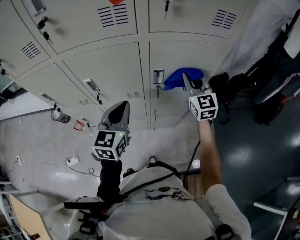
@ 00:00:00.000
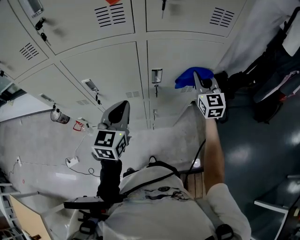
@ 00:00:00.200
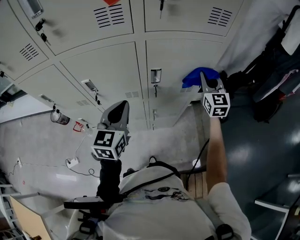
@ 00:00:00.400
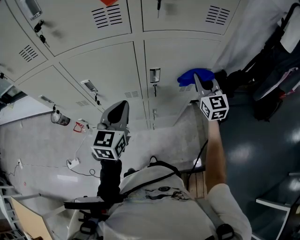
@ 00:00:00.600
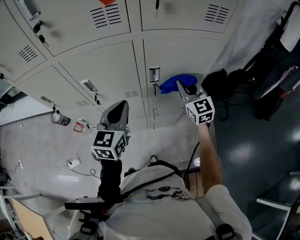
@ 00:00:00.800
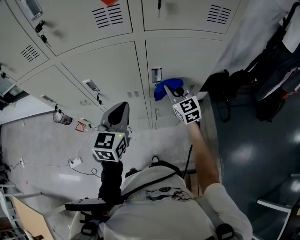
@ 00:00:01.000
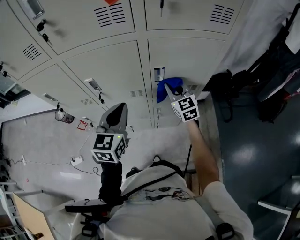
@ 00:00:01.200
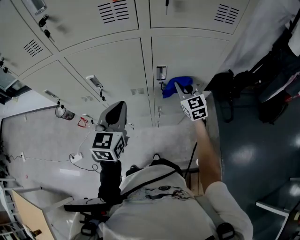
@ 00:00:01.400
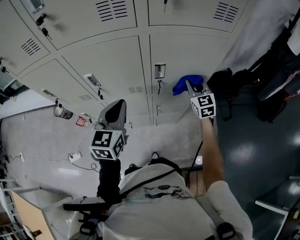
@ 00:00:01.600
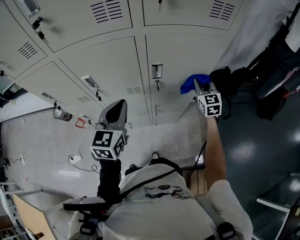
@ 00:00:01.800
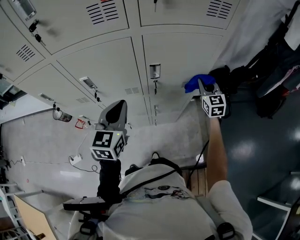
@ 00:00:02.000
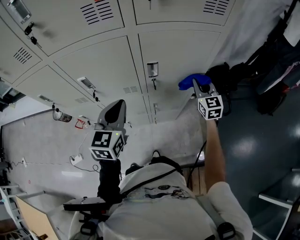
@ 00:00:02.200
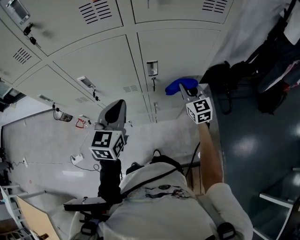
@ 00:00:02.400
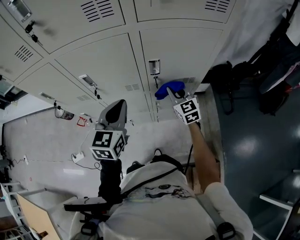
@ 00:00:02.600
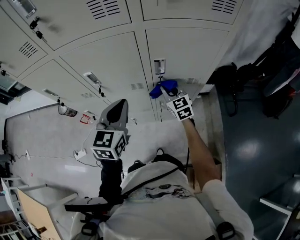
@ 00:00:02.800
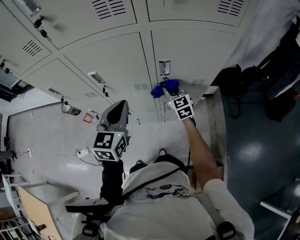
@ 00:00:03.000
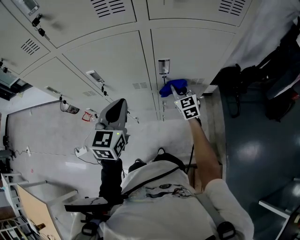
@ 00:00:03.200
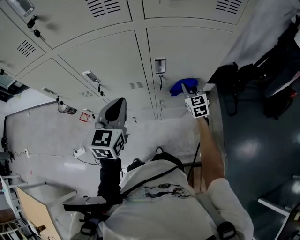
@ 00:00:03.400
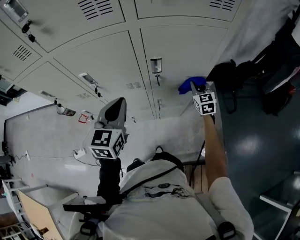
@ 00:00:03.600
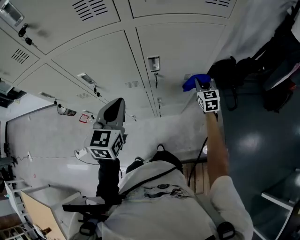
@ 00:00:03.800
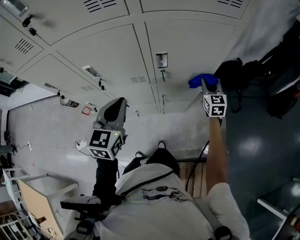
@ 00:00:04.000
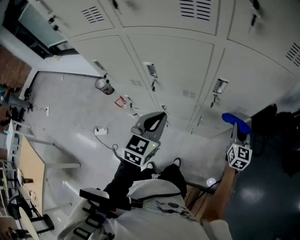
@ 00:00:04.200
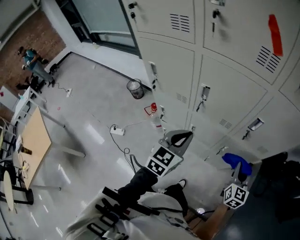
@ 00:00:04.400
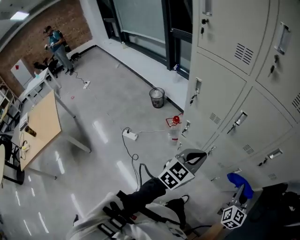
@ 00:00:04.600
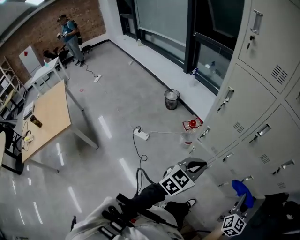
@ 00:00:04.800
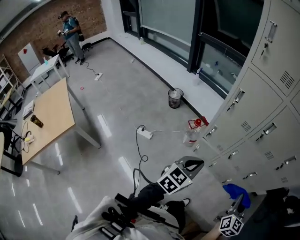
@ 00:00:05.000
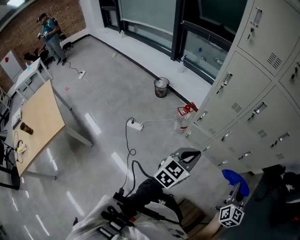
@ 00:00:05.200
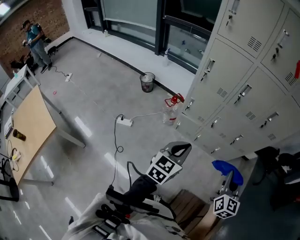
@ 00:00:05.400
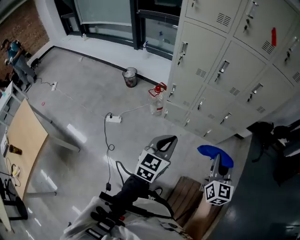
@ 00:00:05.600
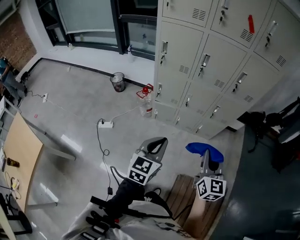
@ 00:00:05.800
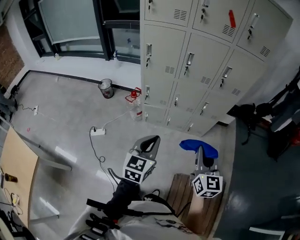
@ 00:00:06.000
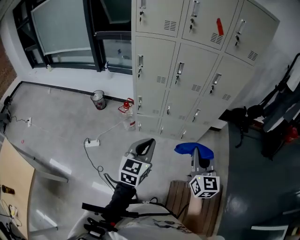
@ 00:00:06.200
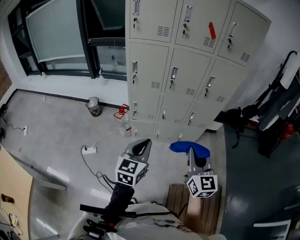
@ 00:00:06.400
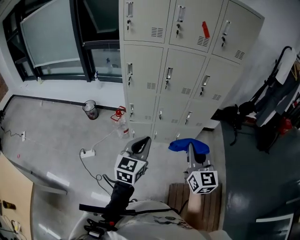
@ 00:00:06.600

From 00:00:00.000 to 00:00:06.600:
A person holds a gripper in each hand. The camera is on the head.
From 00:00:00.000 to 00:00:01.600: The right gripper moves left and right over about 15 cm, changing direction 2 times.
From 00:00:01.600 to 00:00:03.200: The right gripper goes left and right, about 20 cm each way, reversing 2 times.
From 00:00:03.200 to 00:00:05.000: Both grippers move backward, about 35 cm. The right gripper changes its angle by about 20 degrees.
From 00:00:05.000 to 00:00:06.600: The right gripper heads backward and upward, covering about 20 cm. The left gripper is displaced to the right, backward and upward by some 15 cm.

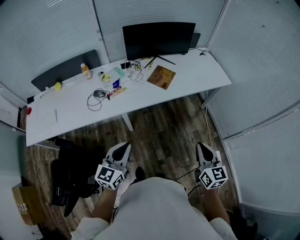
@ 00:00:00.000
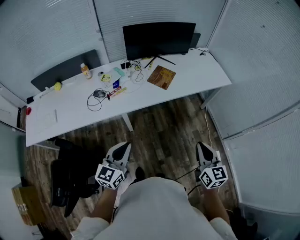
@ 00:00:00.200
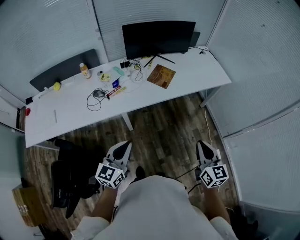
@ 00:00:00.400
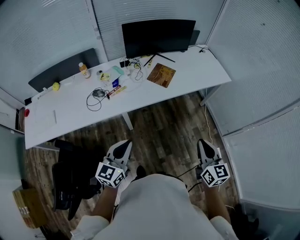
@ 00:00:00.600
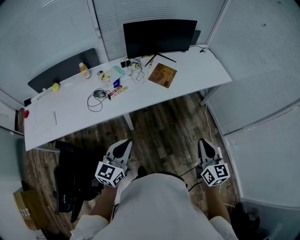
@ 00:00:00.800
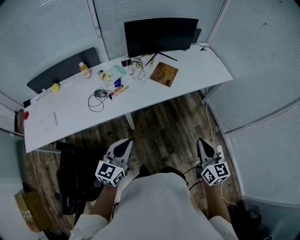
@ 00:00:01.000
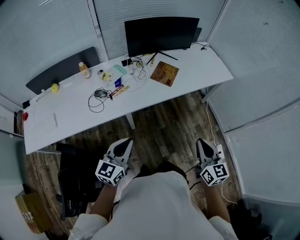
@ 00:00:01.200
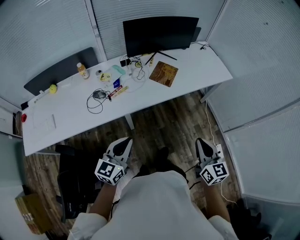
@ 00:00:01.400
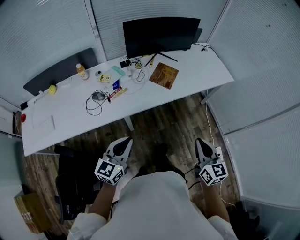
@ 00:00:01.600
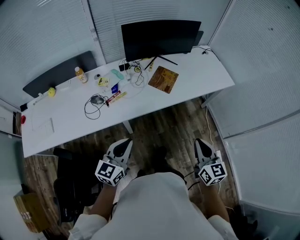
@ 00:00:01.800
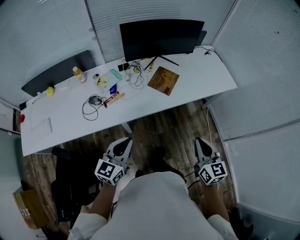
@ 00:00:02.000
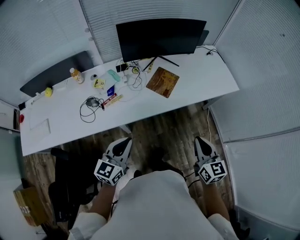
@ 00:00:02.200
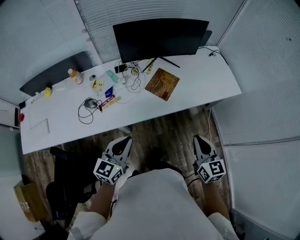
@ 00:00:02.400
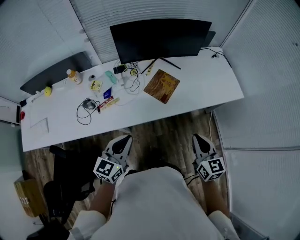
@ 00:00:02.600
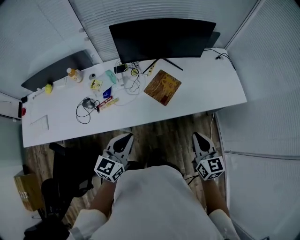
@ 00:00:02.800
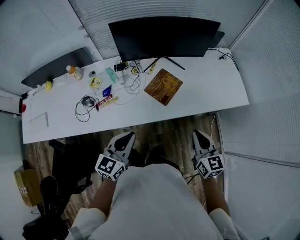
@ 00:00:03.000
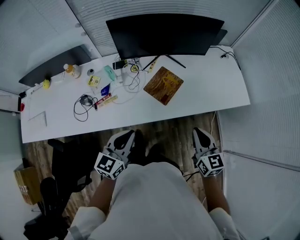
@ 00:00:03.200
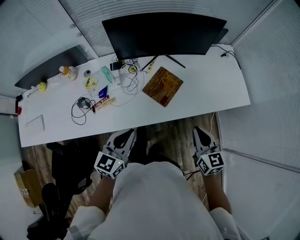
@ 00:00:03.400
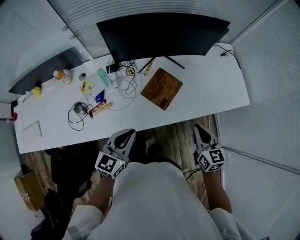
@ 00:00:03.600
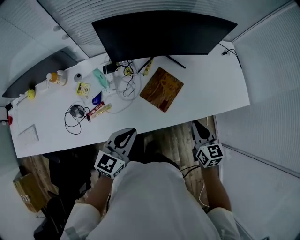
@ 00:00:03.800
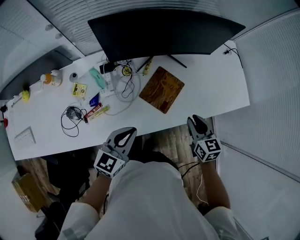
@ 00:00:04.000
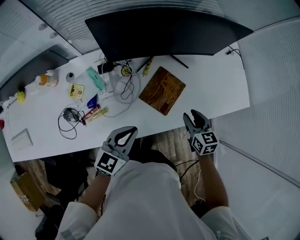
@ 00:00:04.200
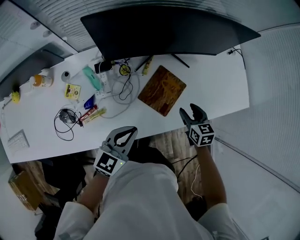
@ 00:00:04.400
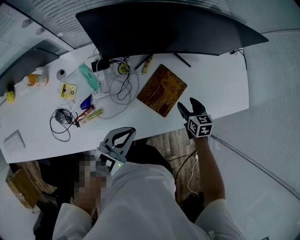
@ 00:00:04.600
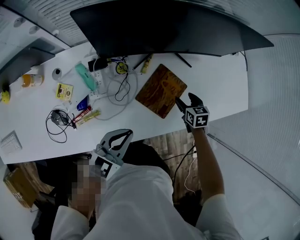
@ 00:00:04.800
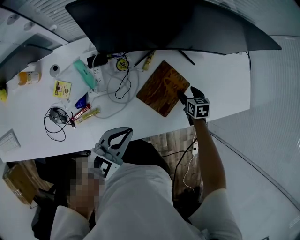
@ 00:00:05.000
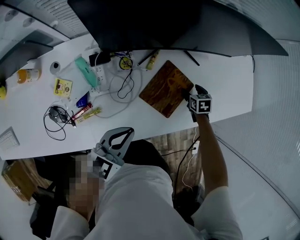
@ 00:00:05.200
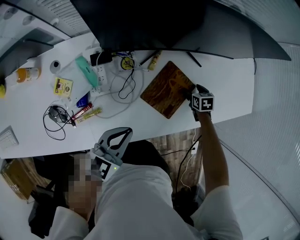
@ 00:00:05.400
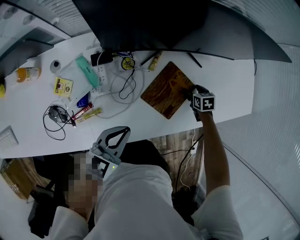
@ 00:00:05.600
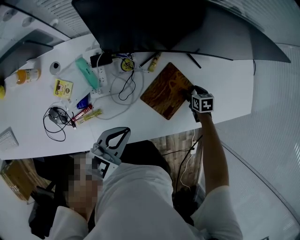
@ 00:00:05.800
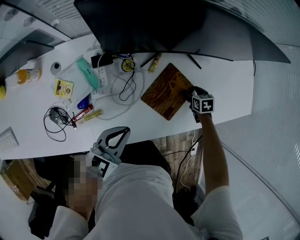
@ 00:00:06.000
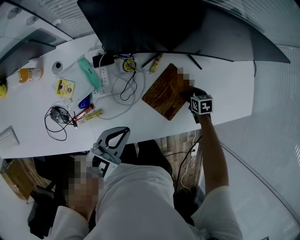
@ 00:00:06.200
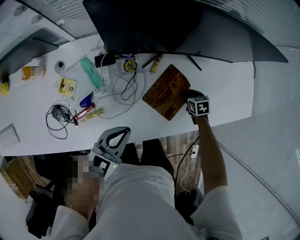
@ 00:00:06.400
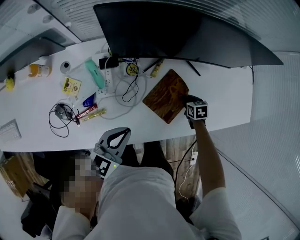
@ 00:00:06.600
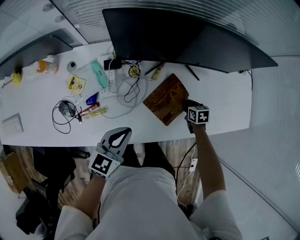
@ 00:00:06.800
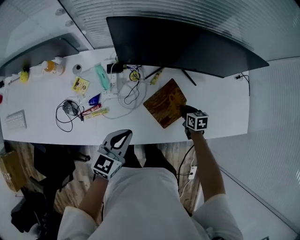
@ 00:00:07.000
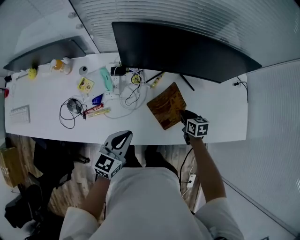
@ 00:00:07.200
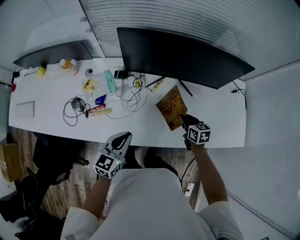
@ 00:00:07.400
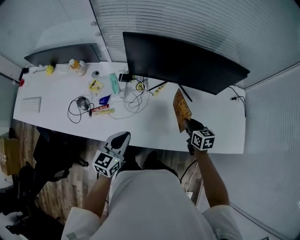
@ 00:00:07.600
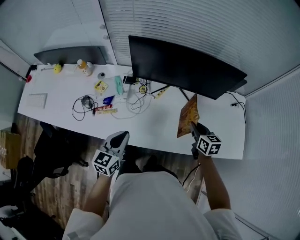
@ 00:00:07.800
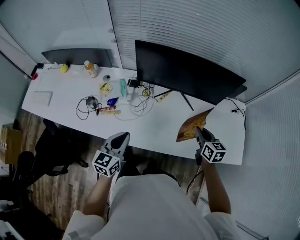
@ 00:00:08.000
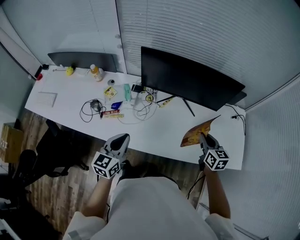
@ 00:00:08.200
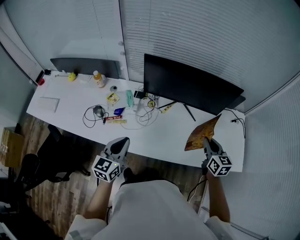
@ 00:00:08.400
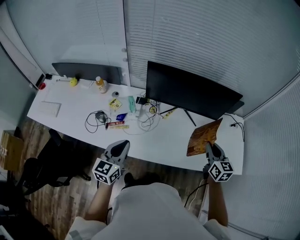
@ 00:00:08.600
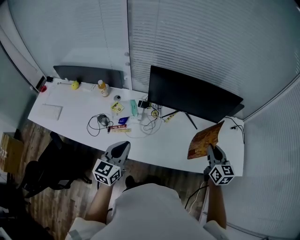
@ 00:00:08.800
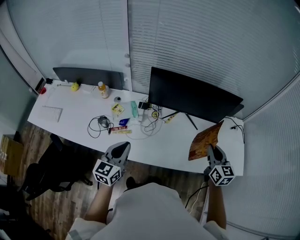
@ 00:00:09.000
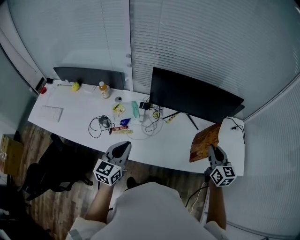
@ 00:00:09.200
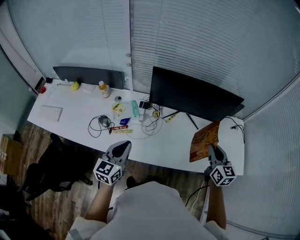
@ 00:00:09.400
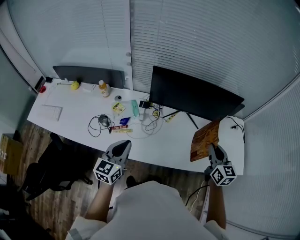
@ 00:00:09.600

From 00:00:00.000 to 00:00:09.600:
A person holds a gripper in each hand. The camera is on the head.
From 00:00:00.000 to 00:00:01.600: The right gripper heads to the left and forward, covering approximately 10 cm. Meanwhile the left gripper travels forward and to the left by roughly 10 cm.
From 00:00:01.600 to 00:00:03.200: The right gripper is displaced forward by about 30 cm; the left gripper heads forward and to the right, covering some 25 cm.
From 00:00:03.200 to 00:00:04.800: The left gripper is displaced forward and downward by roughly 20 cm. The right gripper is displaced downward and forward by approximately 40 cm, tips its fingers downward by roughly 40 degrees, and opens up.
From 00:00:04.800 to 00:00:06.400: The right gripper travels downward by some 10 cm, and closes.
From 00:00:06.400 to 00:00:08.000: The left gripper travels upward and backward by about 15 cm, and rotates some 30 degrees. Meanwhile the right gripper goes roughly 30 cm upward, and tilts its fingers roughly 40 degrees upward.
From 00:00:08.000 to 00:00:09.600: The left gripper goes roughly 10 cm to the left and upward; the right gripper is displaced upward by some 15 cm, and turns by about 20 degrees.

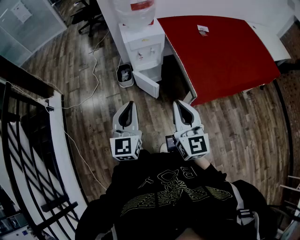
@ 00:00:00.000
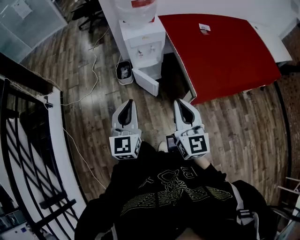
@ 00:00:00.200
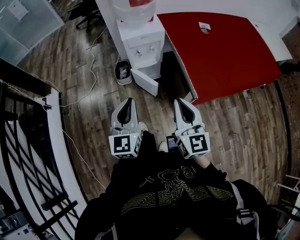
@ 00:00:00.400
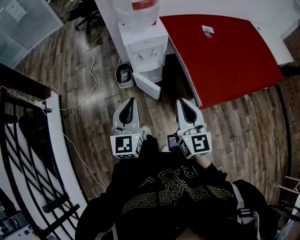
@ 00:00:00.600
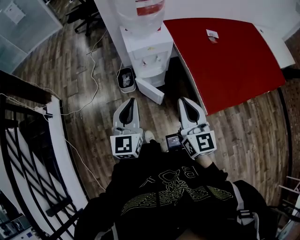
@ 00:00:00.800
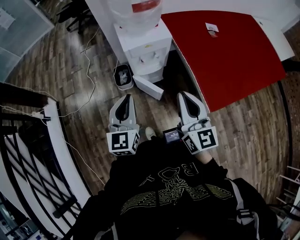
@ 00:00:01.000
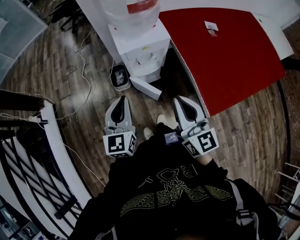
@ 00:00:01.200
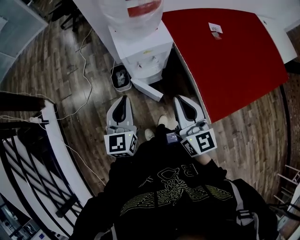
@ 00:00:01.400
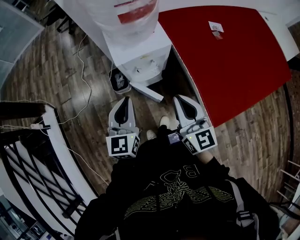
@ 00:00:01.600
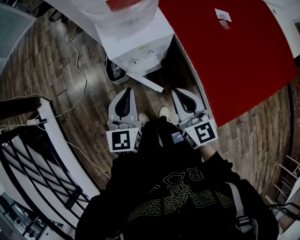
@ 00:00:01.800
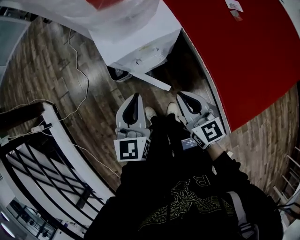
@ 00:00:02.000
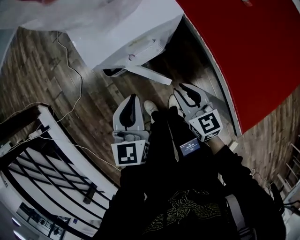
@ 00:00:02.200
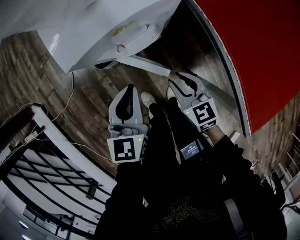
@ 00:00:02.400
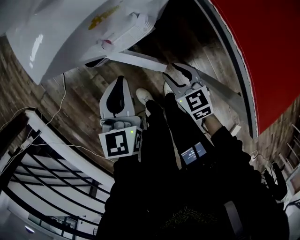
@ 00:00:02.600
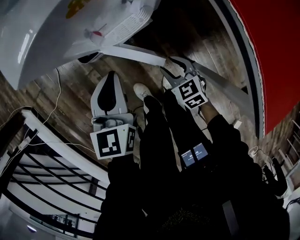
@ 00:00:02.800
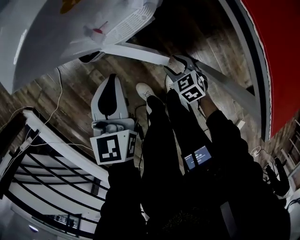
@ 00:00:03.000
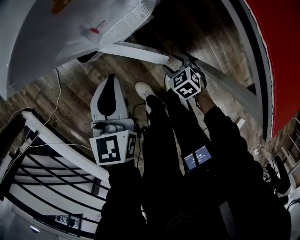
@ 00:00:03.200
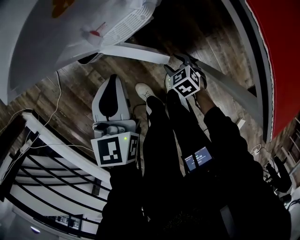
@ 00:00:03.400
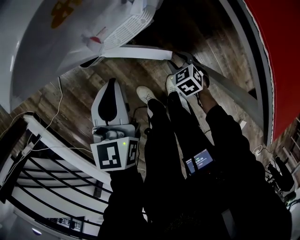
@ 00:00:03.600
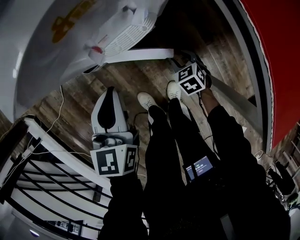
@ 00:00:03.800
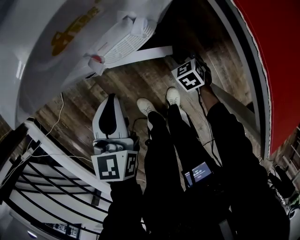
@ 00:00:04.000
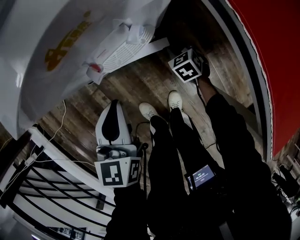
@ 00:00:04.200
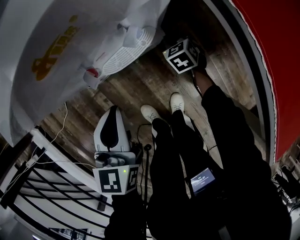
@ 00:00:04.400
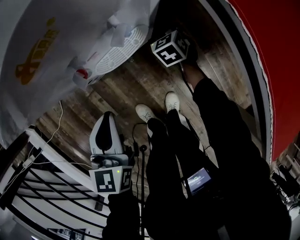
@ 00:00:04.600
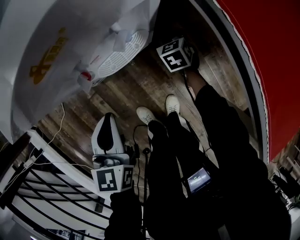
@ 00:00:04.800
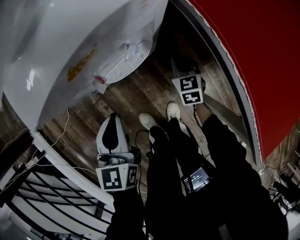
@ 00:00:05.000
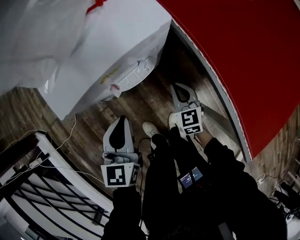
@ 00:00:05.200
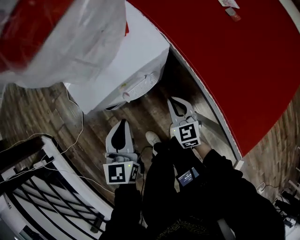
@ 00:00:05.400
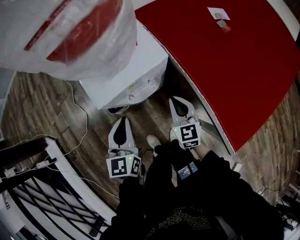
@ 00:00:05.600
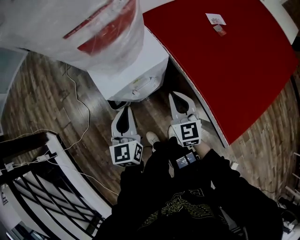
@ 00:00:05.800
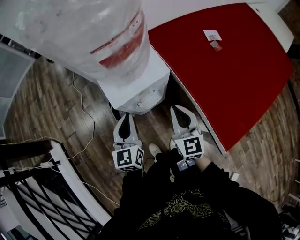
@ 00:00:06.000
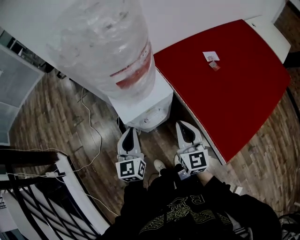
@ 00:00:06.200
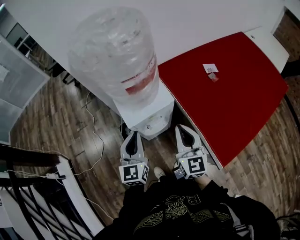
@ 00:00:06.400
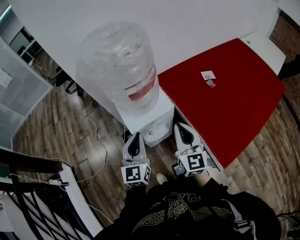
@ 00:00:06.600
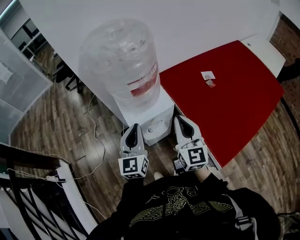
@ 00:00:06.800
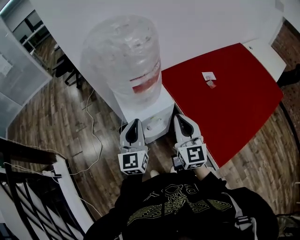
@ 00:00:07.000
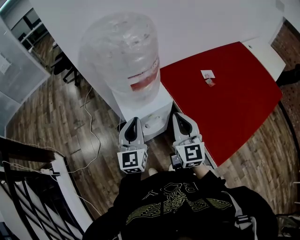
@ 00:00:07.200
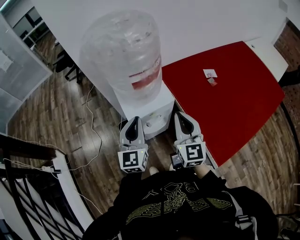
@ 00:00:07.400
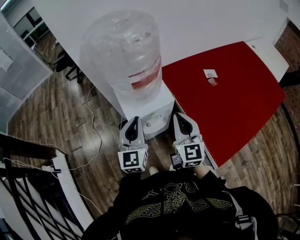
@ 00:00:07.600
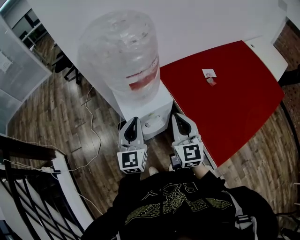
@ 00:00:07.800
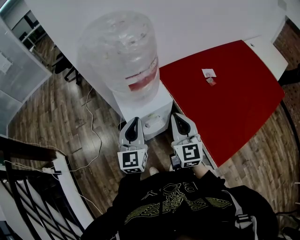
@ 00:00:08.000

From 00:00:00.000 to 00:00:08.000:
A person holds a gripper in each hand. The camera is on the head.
From 00:00:00.000 to 00:00:01.600: The two grippers go about 30 cm forward.
From 00:00:01.600 to 00:00:03.200: The left gripper shifts some 35 cm downward. Meanwhile the right gripper goes approximately 60 cm downward, tips its fingers downward by about 60 degrees, and opens up.
From 00:00:03.200 to 00:00:04.800: The right gripper heads forward, covering about 25 cm, changes its angle by approximately 20 degrees, and closes.
From 00:00:04.800 to 00:00:06.400: The left gripper travels upward by about 40 cm, and swivels about 20 degrees; the right gripper moves upward, about 60 cm, and angles its fingers upward, by approximately 40 degrees.
From 00:00:06.400 to 00:00:08.000: The left gripper changes place by roughly 5 cm.
